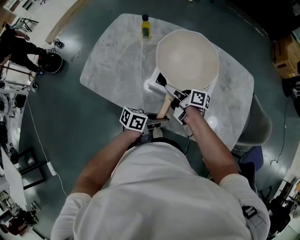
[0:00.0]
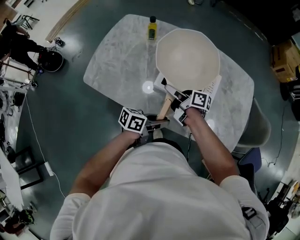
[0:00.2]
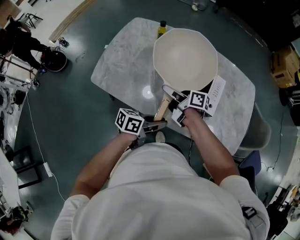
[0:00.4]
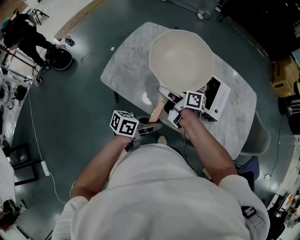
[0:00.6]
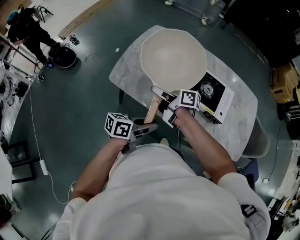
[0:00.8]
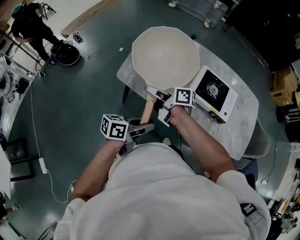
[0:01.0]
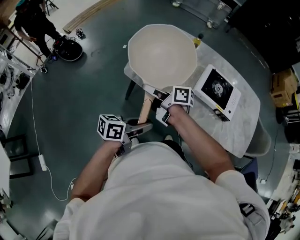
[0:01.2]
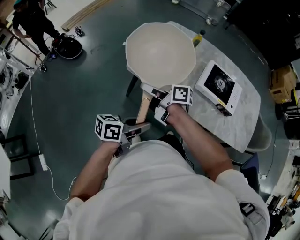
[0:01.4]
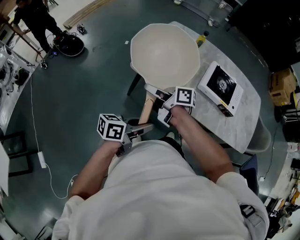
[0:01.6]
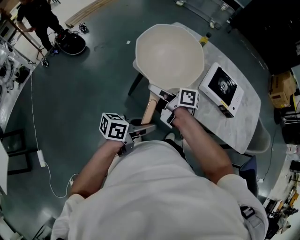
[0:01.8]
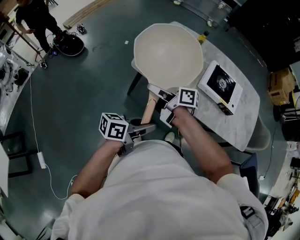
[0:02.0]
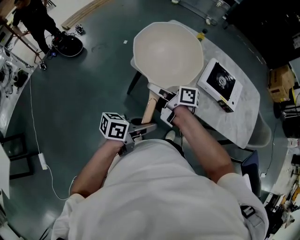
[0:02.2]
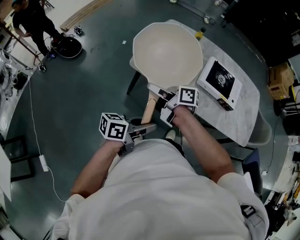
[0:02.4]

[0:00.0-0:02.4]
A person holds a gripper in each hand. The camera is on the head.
0:00.0 to 0:01.2: The right gripper moves some 40 cm. The left gripper moves roughly 35 cm.
0:01.2 to 0:02.4: The left gripper shifts by approximately 5 cm. Meanwhile the right gripper changes place by about 5 cm.

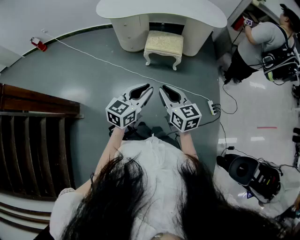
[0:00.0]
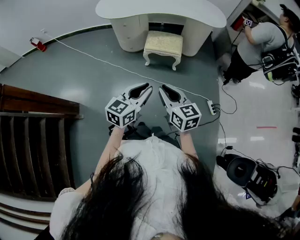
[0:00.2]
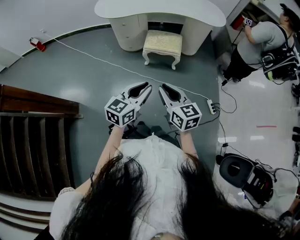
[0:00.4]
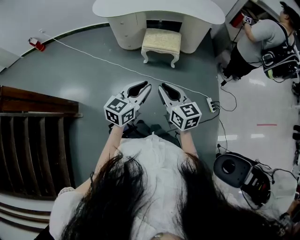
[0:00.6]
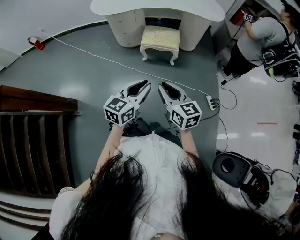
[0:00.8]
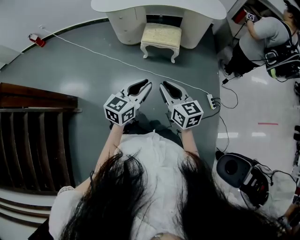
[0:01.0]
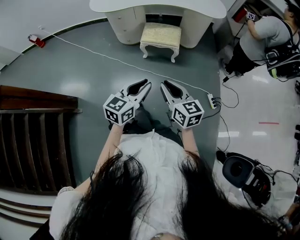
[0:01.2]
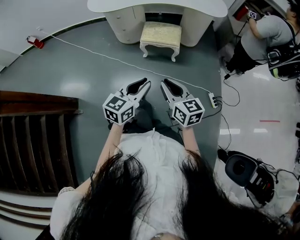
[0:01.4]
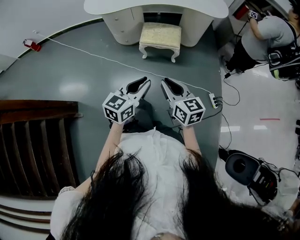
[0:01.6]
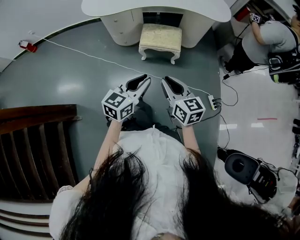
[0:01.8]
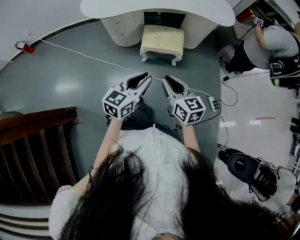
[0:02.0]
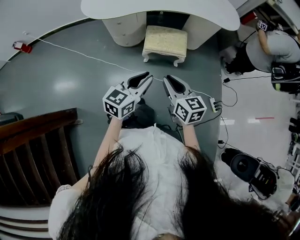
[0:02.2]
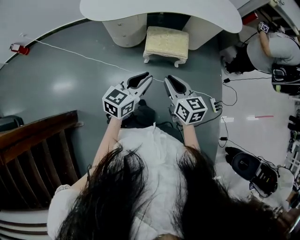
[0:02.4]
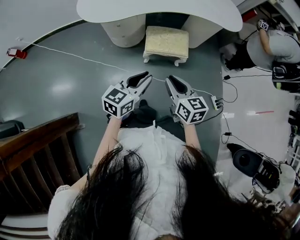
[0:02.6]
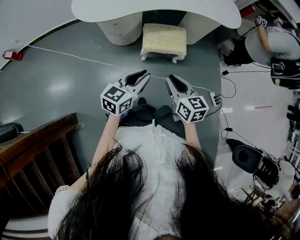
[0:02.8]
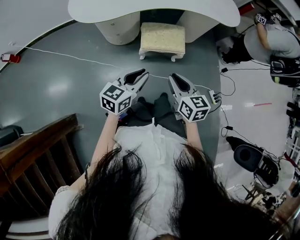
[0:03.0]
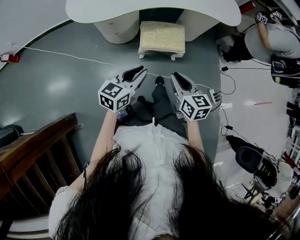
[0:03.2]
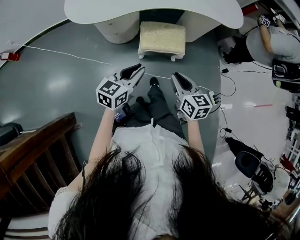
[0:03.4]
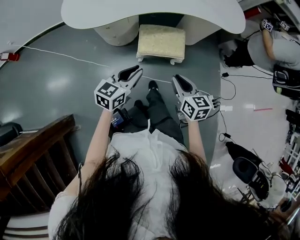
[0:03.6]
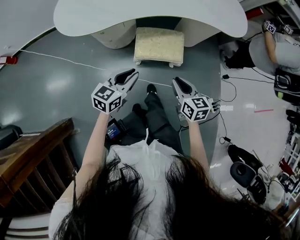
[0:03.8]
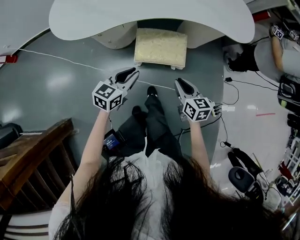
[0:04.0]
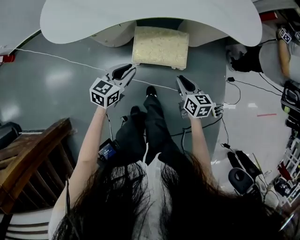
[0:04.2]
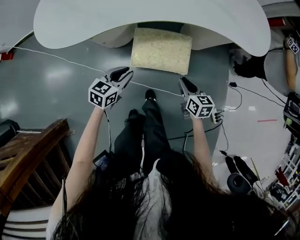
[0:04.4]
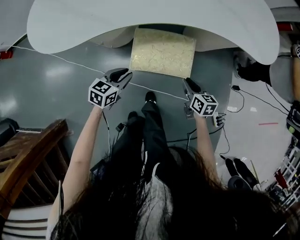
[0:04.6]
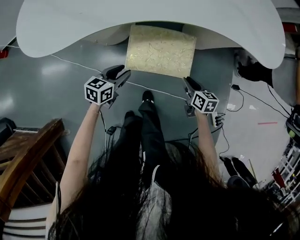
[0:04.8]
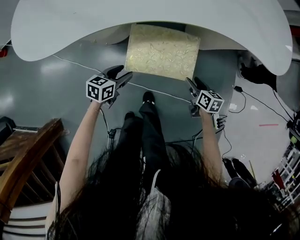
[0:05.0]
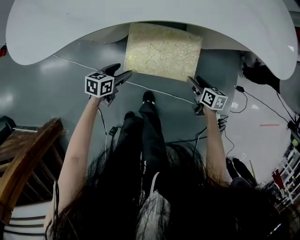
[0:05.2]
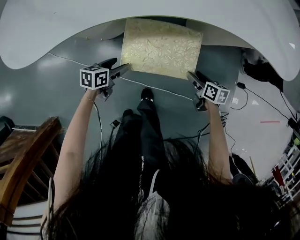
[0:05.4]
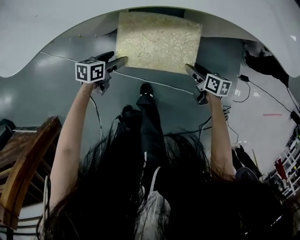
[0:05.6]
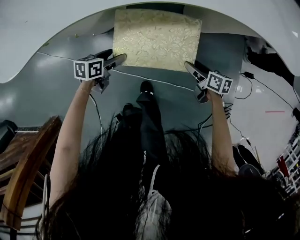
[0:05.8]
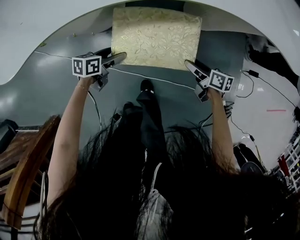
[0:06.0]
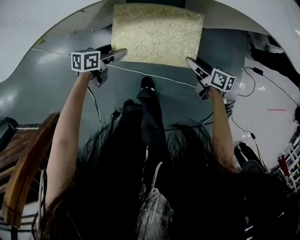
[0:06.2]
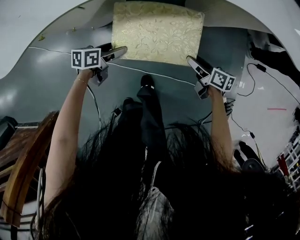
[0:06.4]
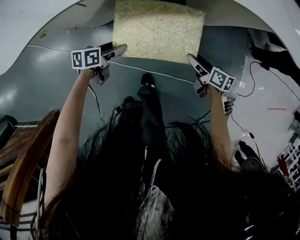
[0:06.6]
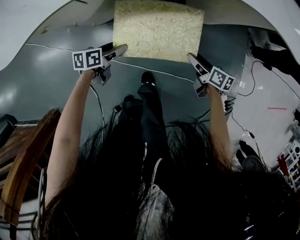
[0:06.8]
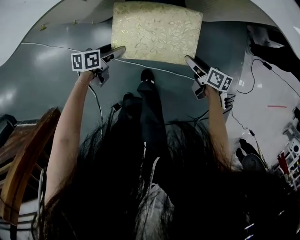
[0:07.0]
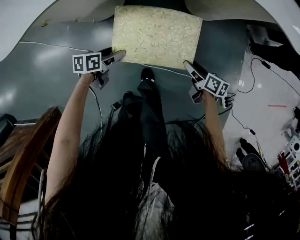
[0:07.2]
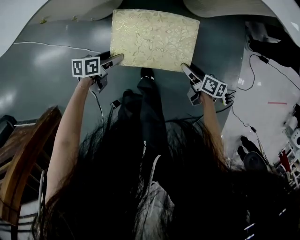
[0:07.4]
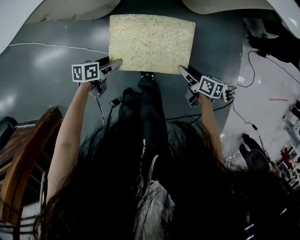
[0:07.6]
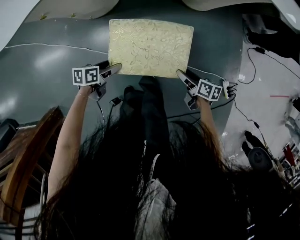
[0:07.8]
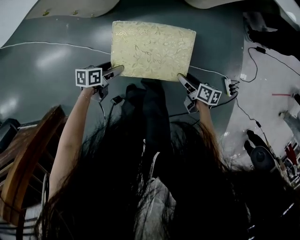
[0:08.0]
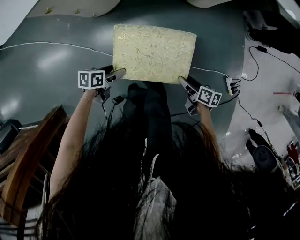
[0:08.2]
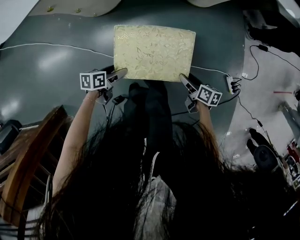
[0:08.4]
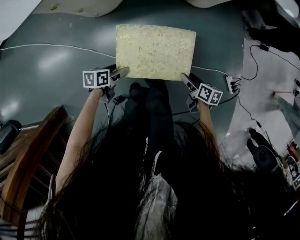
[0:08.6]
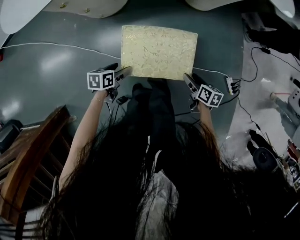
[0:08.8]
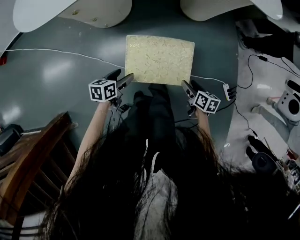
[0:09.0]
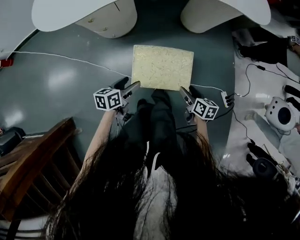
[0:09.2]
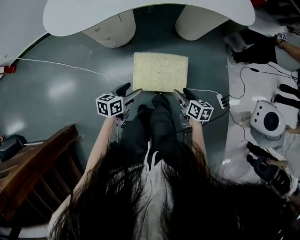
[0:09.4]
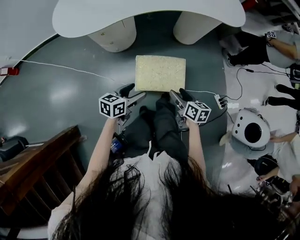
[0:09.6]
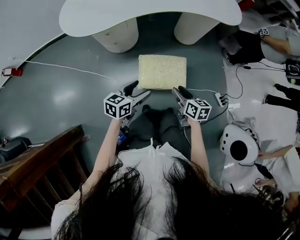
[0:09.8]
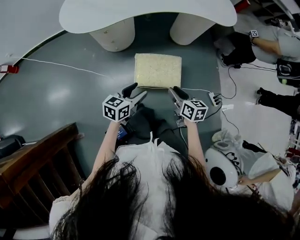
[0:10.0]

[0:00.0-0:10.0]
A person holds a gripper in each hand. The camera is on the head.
0:00.0 to 0:01.4: The right gripper moves some 5 cm.
0:01.4 to 0:02.8: Both grippers move forward and to the left, about 30 cm.
0:02.8 to 0:04.2: The right gripper shifts some 35 cm forward, downward and to the right, while the left gripper goes about 30 cm forward and downward.
0:04.2 to 0:05.8: The left gripper goes approximately 30 cm downward, rotates about 30 degrees, and opens, while the right gripper heads downward and forward, covering approximately 30 cm, swivels about 30 degrees, and opens.
0:05.8 to 0:07.2: The grippers move only a little.
0:07.2 to 0:08.6: The grippers make only small movements.
0:08.6 to 0:10.0: Both grippers move upward, some 35 cm. The right gripper turns by about 30 degrees, and closes. The left gripper changes its angle by some 40 degrees.

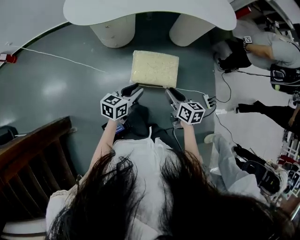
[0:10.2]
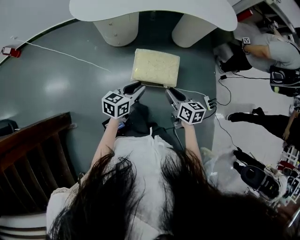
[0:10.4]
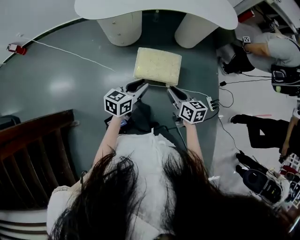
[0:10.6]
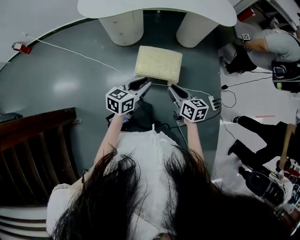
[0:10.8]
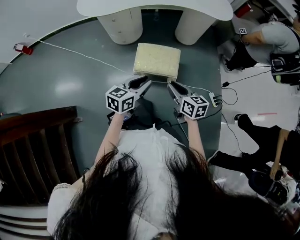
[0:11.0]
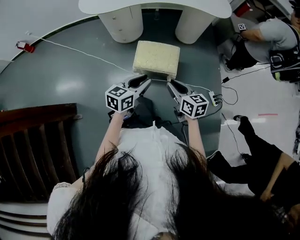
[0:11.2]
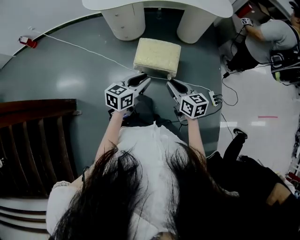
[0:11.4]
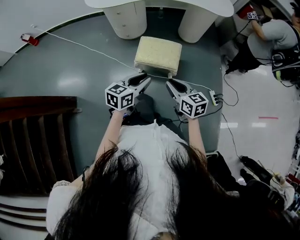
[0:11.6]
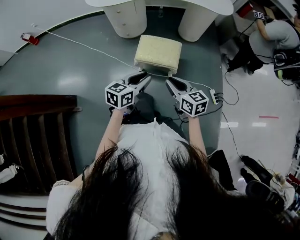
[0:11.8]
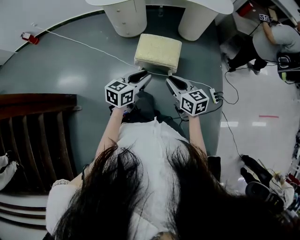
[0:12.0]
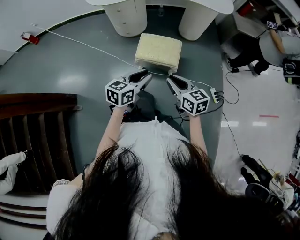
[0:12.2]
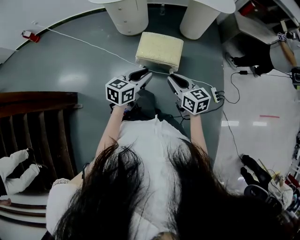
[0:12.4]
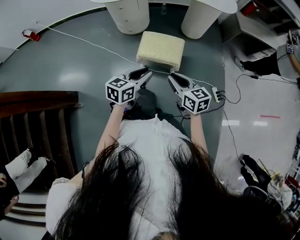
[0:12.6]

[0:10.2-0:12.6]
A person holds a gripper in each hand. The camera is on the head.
0:10.2 to 0:11.4: The left gripper goes roughly 20 cm backward, to the right and upward. The right gripper moves backward, upward and to the right, some 15 cm.
0:11.4 to 0:12.6: The grippers make only small movements.

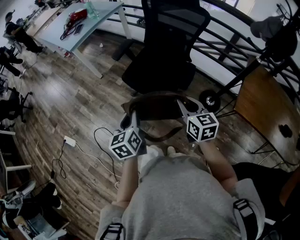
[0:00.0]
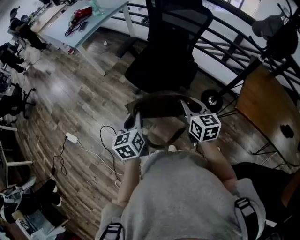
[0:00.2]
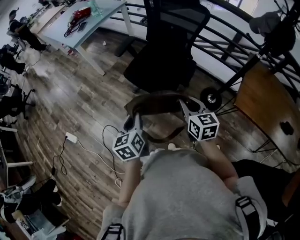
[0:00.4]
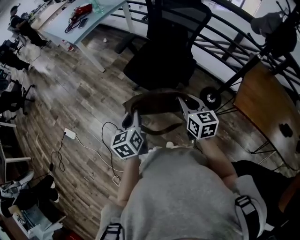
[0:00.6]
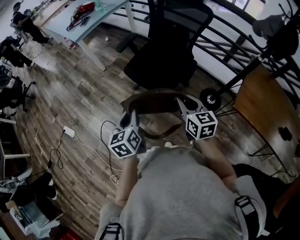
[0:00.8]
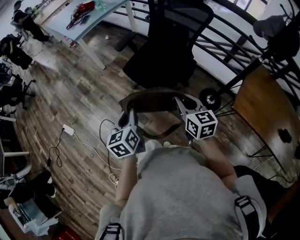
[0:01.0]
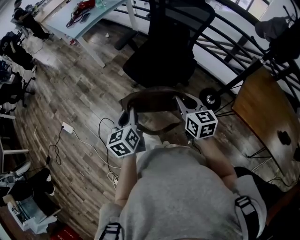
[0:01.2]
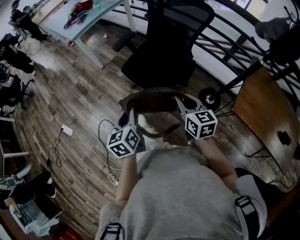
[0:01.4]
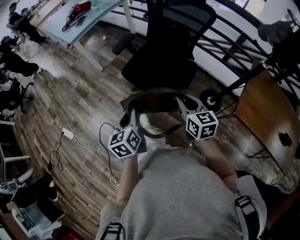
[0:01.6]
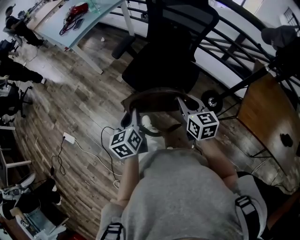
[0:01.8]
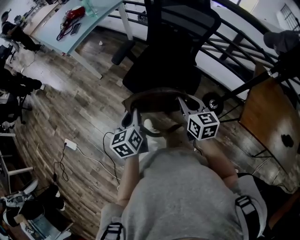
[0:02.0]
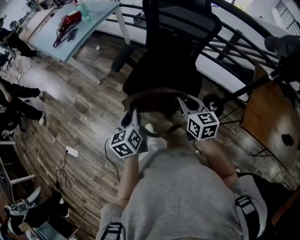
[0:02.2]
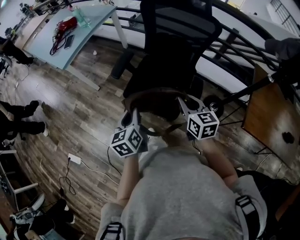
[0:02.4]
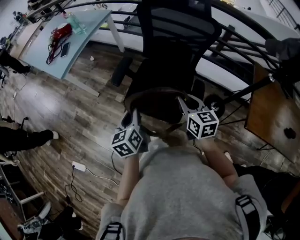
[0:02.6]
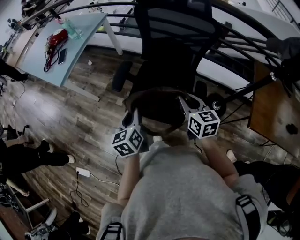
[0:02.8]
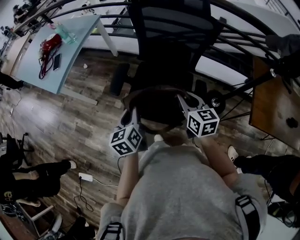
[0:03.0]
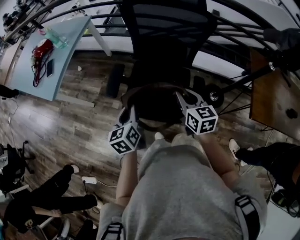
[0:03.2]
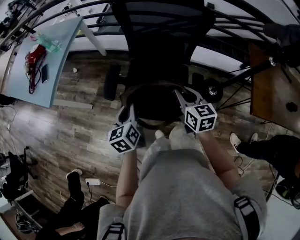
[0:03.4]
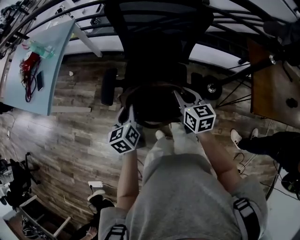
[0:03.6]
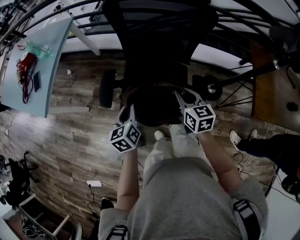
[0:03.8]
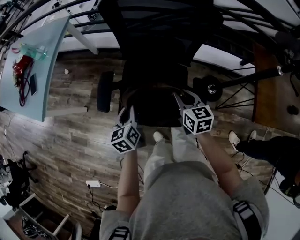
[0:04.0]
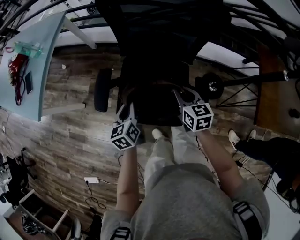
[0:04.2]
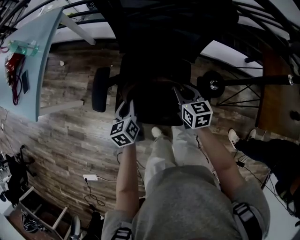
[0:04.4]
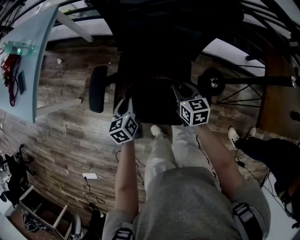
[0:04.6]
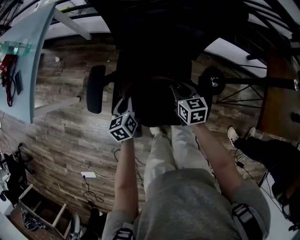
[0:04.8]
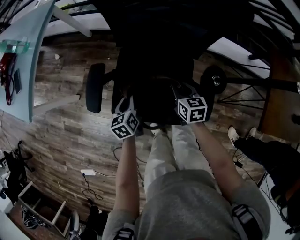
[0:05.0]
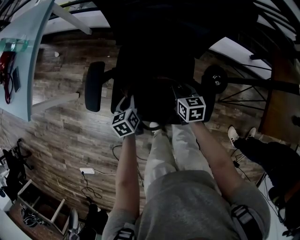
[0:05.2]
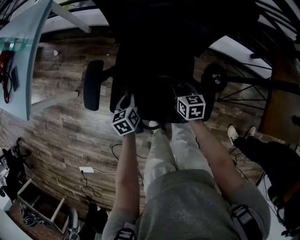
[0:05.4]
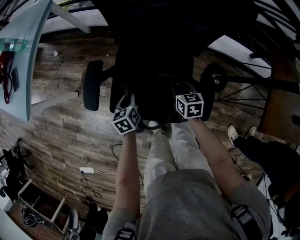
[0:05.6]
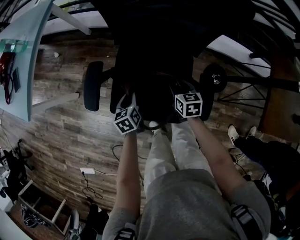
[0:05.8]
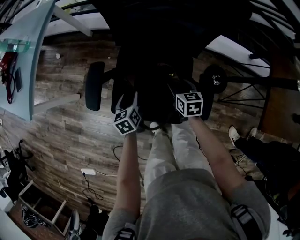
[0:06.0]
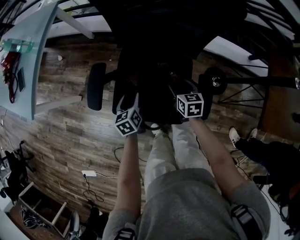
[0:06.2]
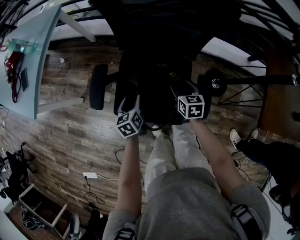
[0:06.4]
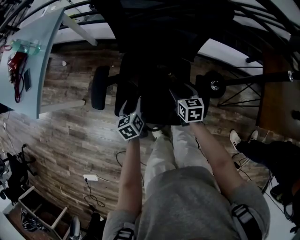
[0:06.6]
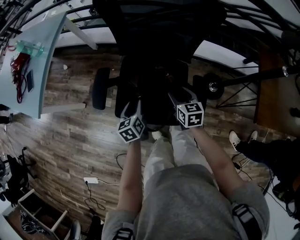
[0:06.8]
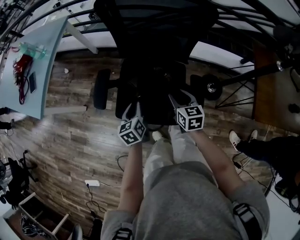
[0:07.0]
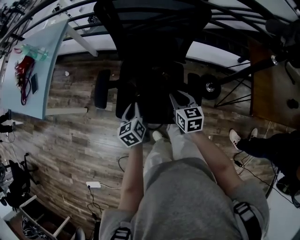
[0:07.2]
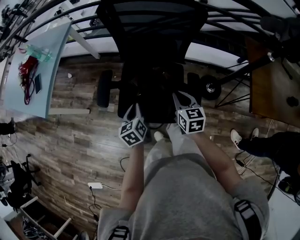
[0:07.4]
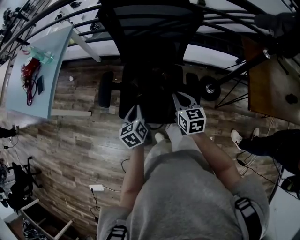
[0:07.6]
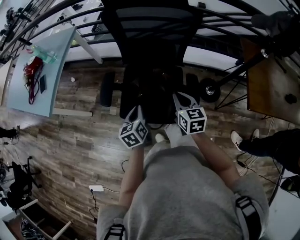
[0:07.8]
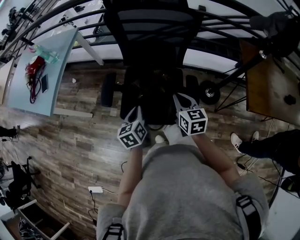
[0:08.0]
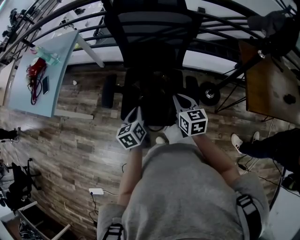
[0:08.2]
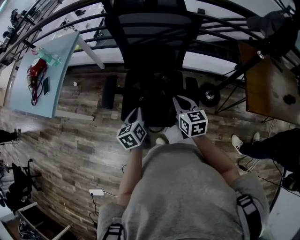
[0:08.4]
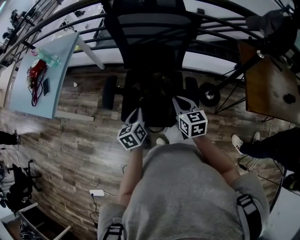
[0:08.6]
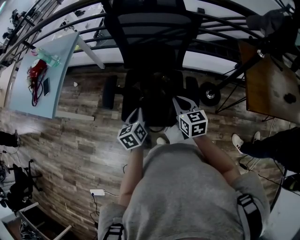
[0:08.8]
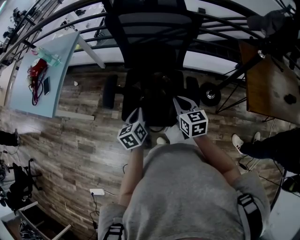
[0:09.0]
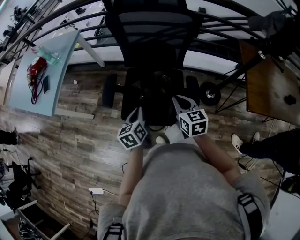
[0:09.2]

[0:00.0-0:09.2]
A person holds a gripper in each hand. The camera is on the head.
0:00.0 to 0:01.6: The grippers make only small movements.
0:01.6 to 0:03.0: Both grippers move forward, some 25 cm.
0:03.0 to 0:04.6: Both grippers move downward and forward, roughly 25 cm.
0:04.6 to 0:06.2: Both grippers travel together downward, roughly 5 cm. The right gripper opens up. Meanwhile the left gripper opens up.
0:06.2 to 0:07.6: The grippers both shift upward and backward by roughly 20 cm. The right gripper closes its fingers. The left gripper closes its fingers.
0:07.6 to 0:09.2: The grippers stay close to where they were, moving slightly.
